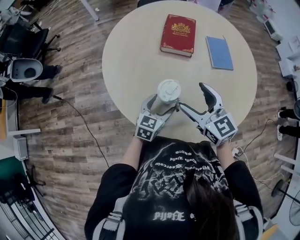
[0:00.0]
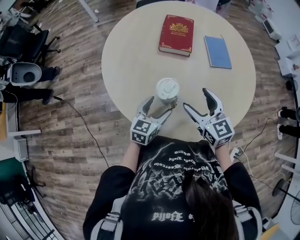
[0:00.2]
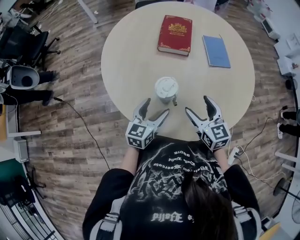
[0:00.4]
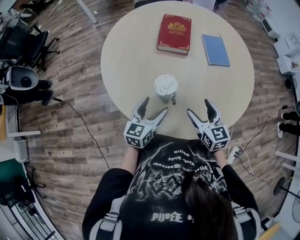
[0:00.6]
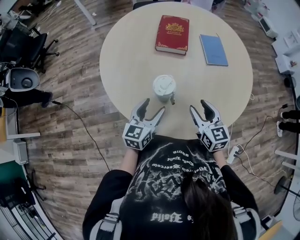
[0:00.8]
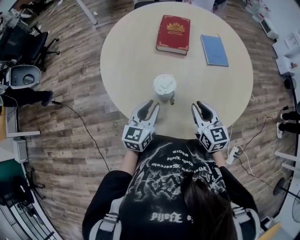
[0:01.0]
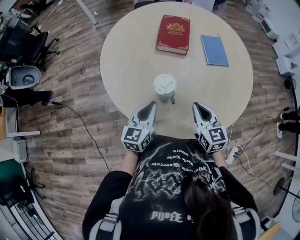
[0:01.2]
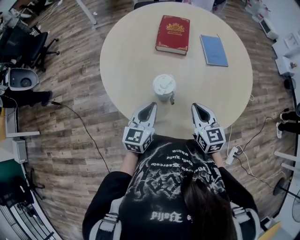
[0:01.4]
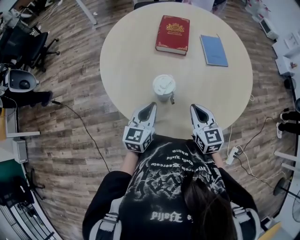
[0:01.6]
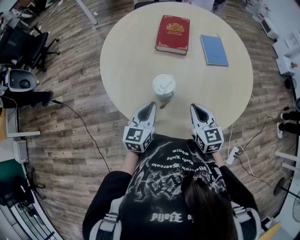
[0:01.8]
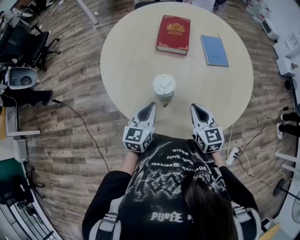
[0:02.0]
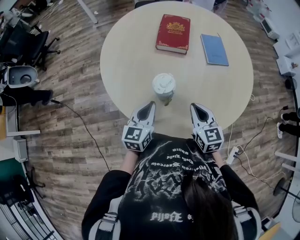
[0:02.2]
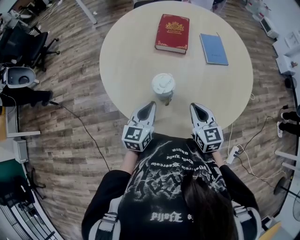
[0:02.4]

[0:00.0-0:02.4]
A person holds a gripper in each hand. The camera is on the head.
0:00.0 to 0:01.2: The left gripper goes about 5 cm upward, and closes. The right gripper goes roughly 10 cm downward, to the right and backward, and closes its fingers.
0:01.2 to 0:02.4: Both grippers stay about where they are.

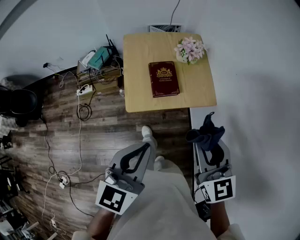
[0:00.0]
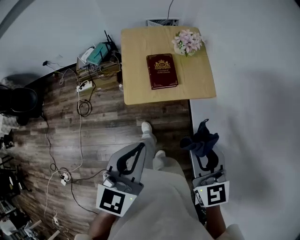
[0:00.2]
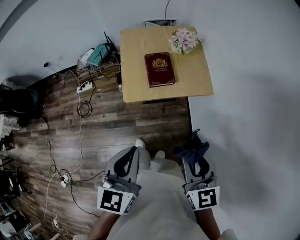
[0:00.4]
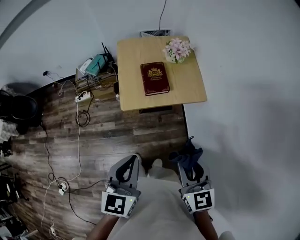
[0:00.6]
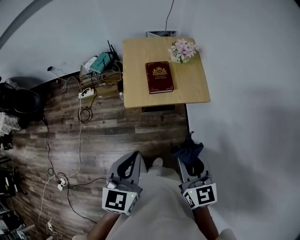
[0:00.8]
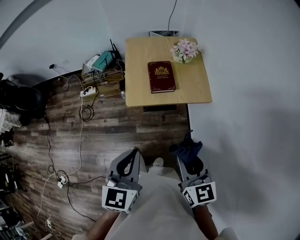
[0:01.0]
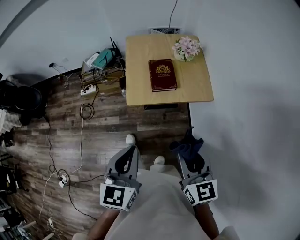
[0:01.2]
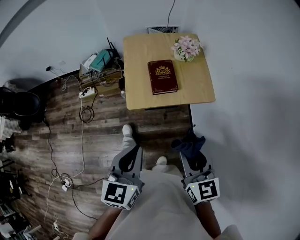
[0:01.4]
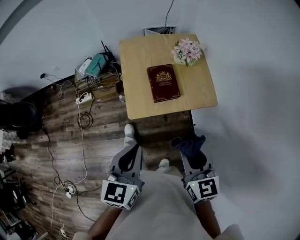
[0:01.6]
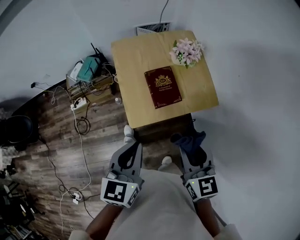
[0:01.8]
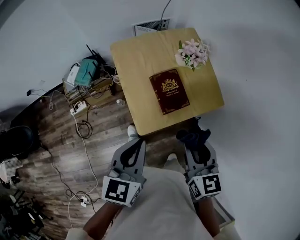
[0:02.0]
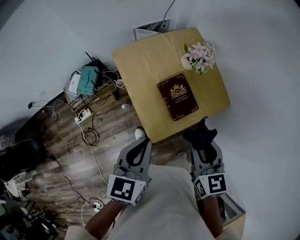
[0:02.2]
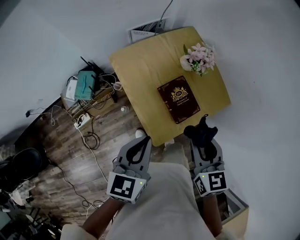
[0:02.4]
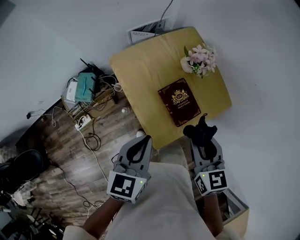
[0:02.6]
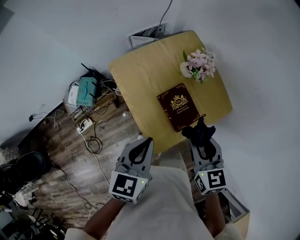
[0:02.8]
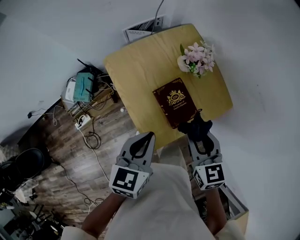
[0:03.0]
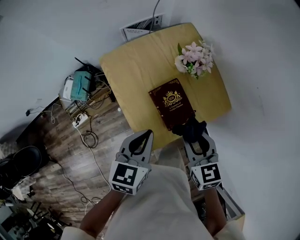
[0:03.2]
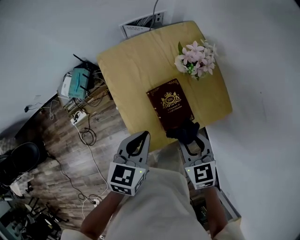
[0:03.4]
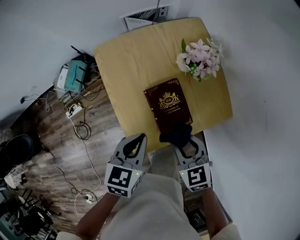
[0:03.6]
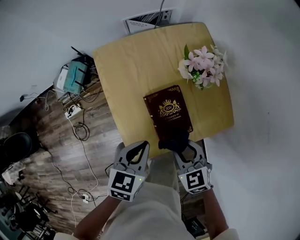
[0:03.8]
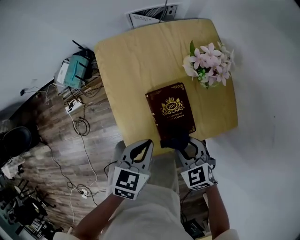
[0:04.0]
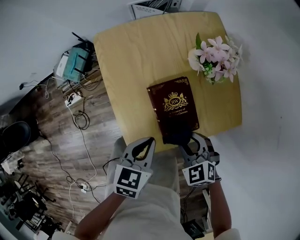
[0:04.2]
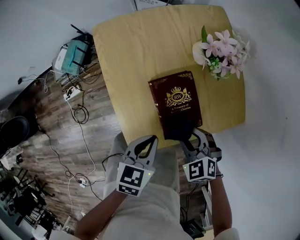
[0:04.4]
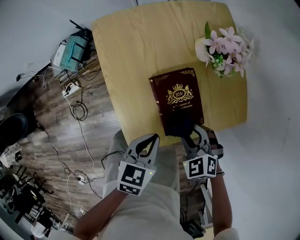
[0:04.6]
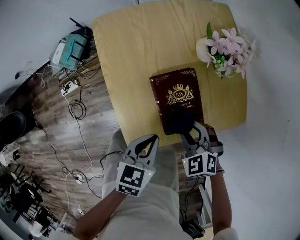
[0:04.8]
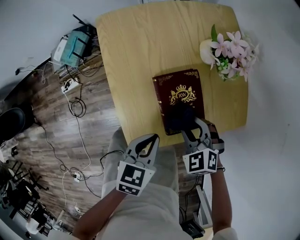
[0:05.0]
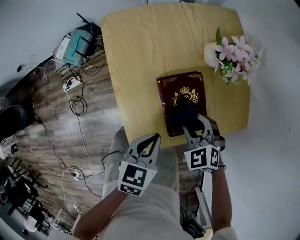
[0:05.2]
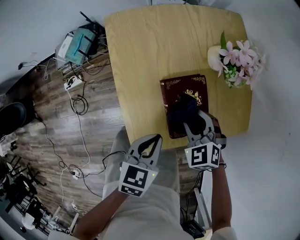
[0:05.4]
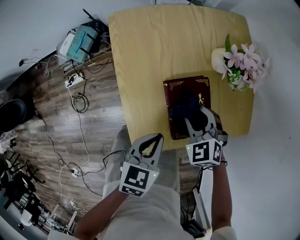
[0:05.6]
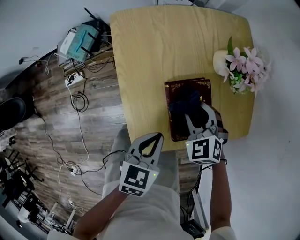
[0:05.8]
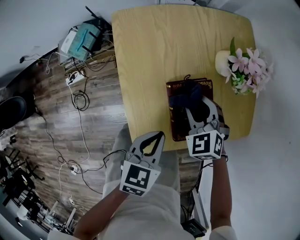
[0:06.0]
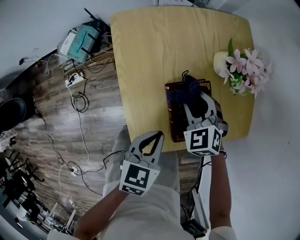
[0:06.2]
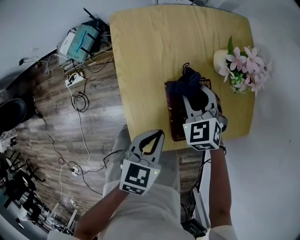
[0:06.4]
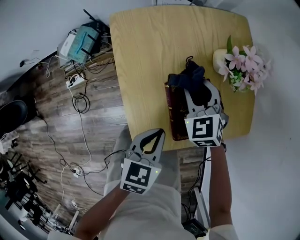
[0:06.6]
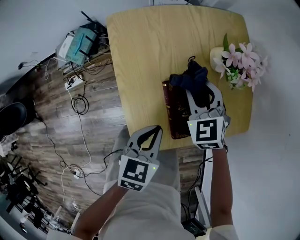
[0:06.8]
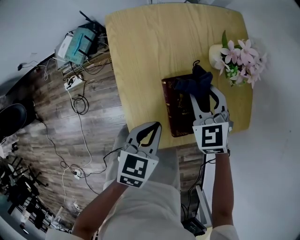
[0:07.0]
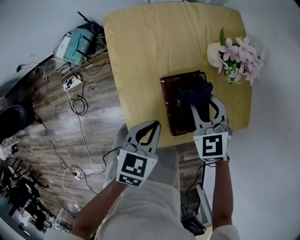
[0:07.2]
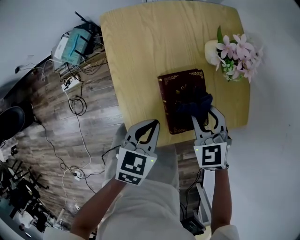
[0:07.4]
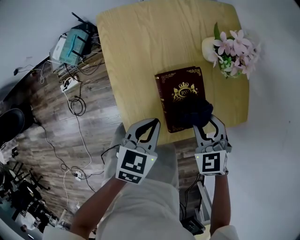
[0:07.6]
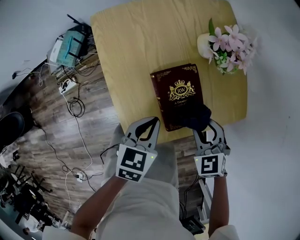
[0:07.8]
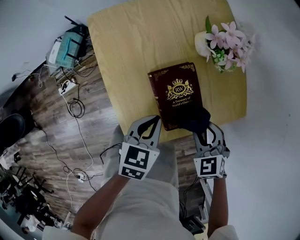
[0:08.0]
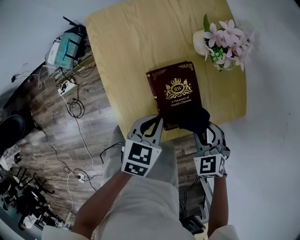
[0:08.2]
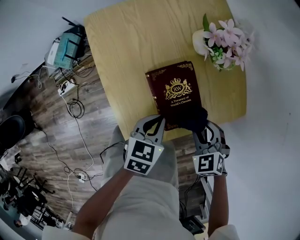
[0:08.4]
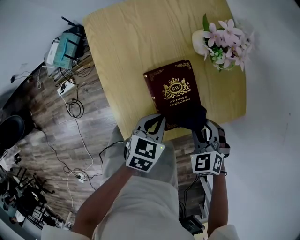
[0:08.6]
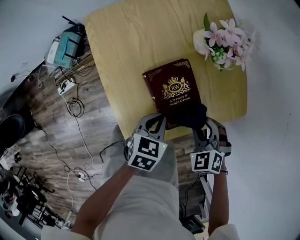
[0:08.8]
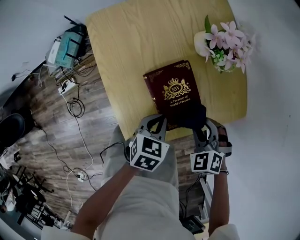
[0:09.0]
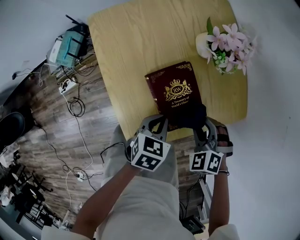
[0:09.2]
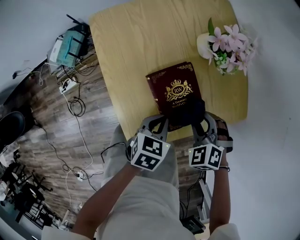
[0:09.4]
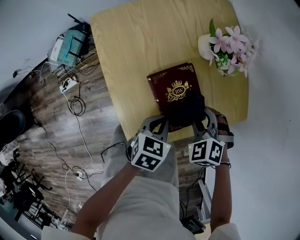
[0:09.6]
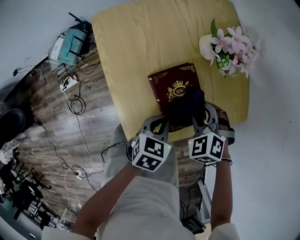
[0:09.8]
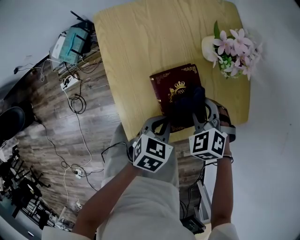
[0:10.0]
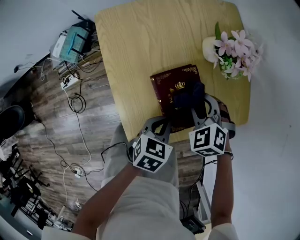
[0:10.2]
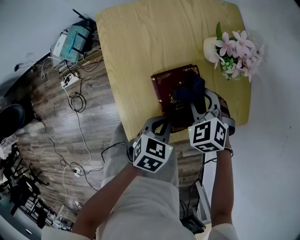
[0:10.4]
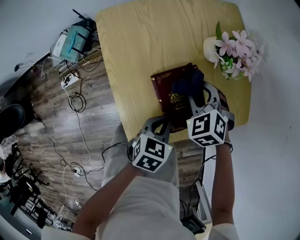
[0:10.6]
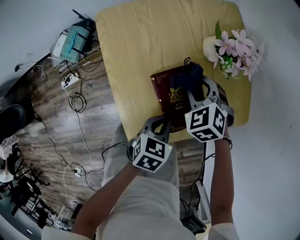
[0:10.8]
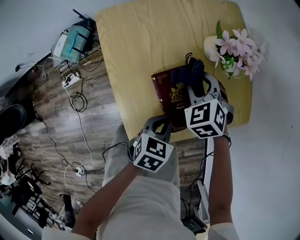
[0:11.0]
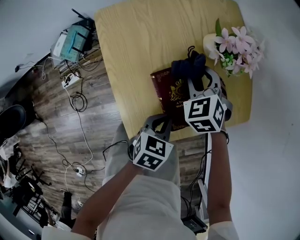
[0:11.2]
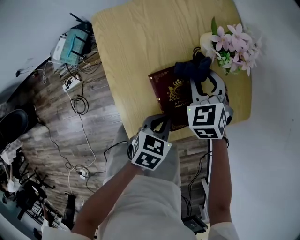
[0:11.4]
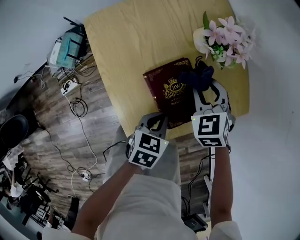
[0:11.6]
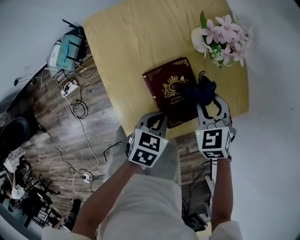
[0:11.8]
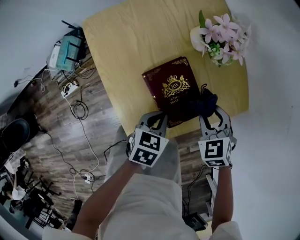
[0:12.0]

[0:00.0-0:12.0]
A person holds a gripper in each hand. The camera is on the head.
0:00.0 to 0:01.6: Both grippers travel together downward, about 5 cm. The left gripper moves roughly 10 cm backward and comes back. The right gripper travels backward and back again, roughly 15 cm each way.
0:01.6 to 0:03.0: Both grippers move forward and to the left, roughly 30 cm. The left gripper swivels approximately 30 degrees.
0:03.0 to 0:04.4: The two grippers go roughly 20 cm downward. The right gripper rolls counterclockwise, seen from behind, by some 40 degrees.
0:04.4 to 0:06.0: The right gripper is displaced forward by approximately 15 cm.
0:06.0 to 0:07.6: The right gripper is displaced backward and to the right by about 10 cm.
0:07.6 to 0:09.0: The left gripper is displaced downward and to the right by roughly 10 cm, while the right gripper moves some 5 cm.
0:09.0 to 0:10.4: The right gripper shifts roughly 10 cm forward and to the left.
0:10.4 to 0:12.0: The right gripper goes about 10 cm to the right and backward, and rotates some 20 degrees.

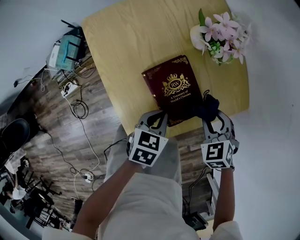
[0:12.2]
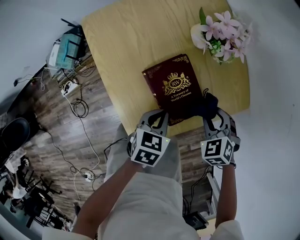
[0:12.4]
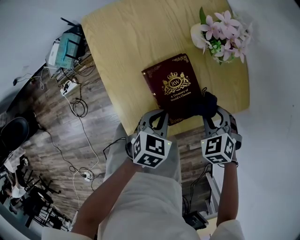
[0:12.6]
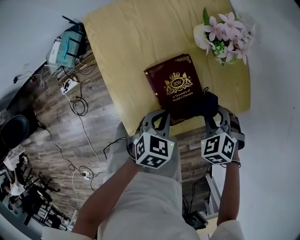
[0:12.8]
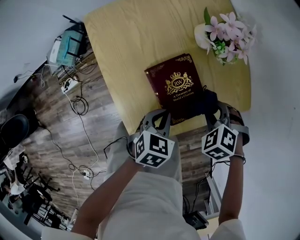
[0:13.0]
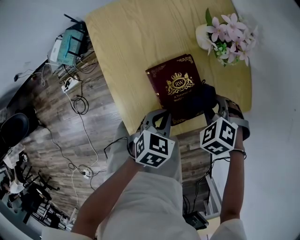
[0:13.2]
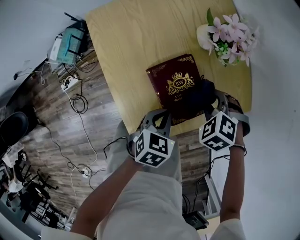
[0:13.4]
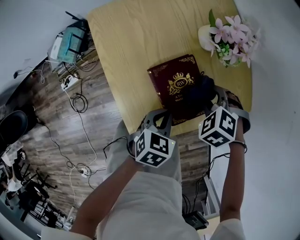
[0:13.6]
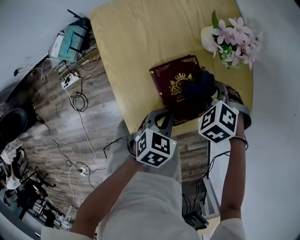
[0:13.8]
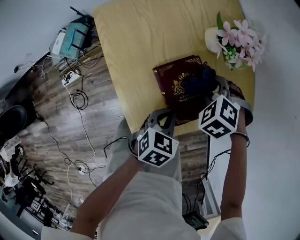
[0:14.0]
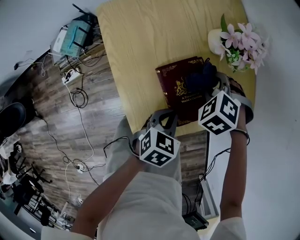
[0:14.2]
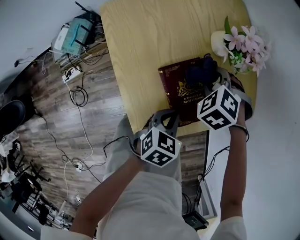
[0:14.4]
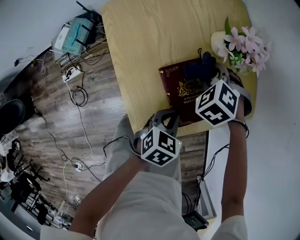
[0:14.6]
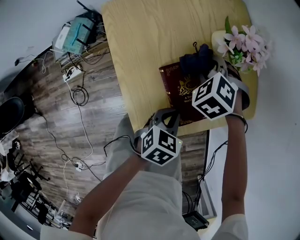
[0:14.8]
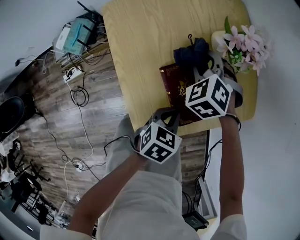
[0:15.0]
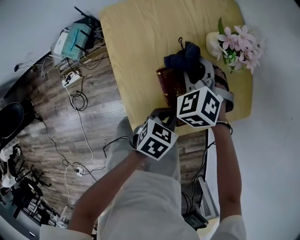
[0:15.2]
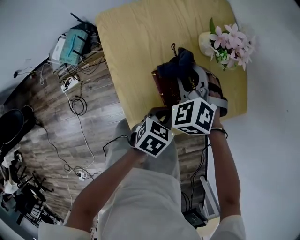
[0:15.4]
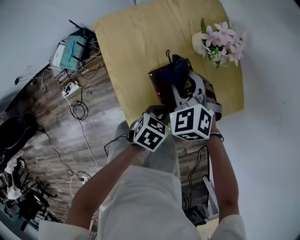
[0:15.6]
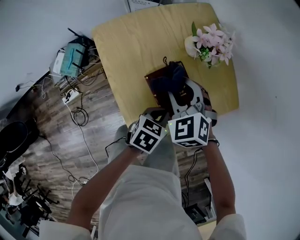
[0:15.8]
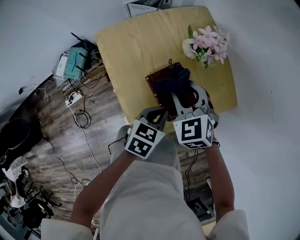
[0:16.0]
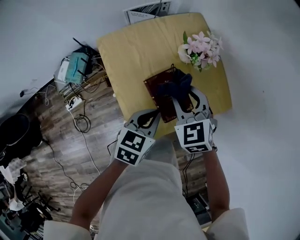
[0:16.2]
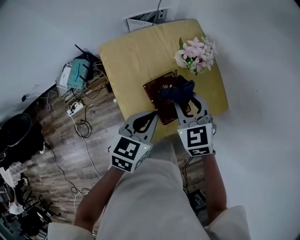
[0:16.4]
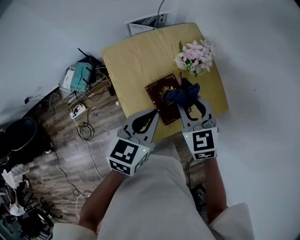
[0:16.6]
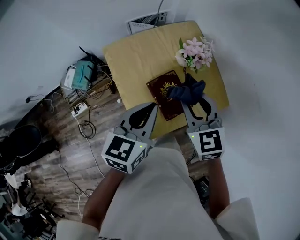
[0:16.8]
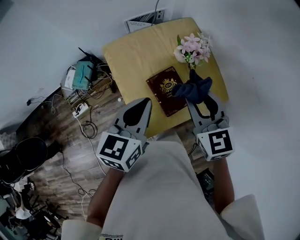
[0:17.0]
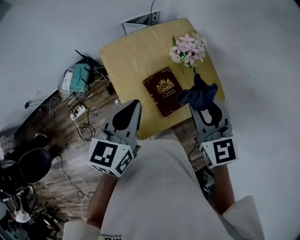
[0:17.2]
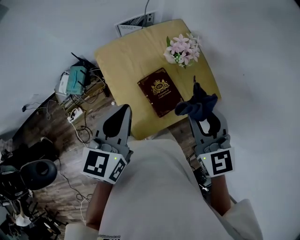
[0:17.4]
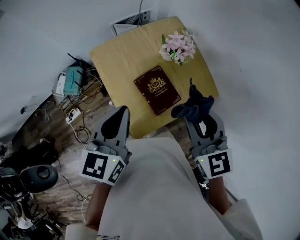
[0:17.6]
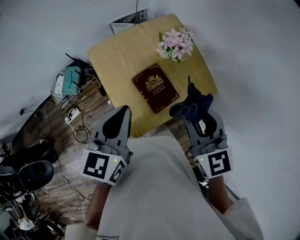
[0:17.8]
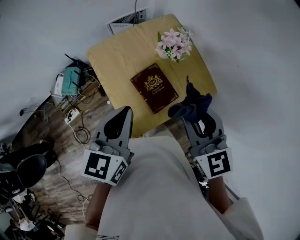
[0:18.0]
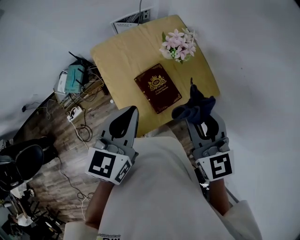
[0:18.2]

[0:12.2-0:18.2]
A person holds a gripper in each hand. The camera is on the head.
0:12.2 to 0:13.8: The right gripper moves approximately 10 cm, and turns by roughly 30 degrees.
0:13.8 to 0:15.2: The right gripper shifts by approximately 15 cm, and turns by approximately 30 degrees.
0:15.2 to 0:16.6: The right gripper moves upward, backward and to the right, roughly 20 cm, and swivels some 40 degrees; the left gripper is displaced upward by about 25 cm, and rotates some 30 degrees.
0:16.6 to 0:18.2: The left gripper is displaced upward by roughly 5 cm, while the right gripper shifts some 15 cm upward, backward and to the right.

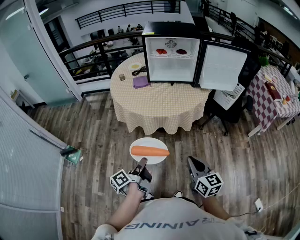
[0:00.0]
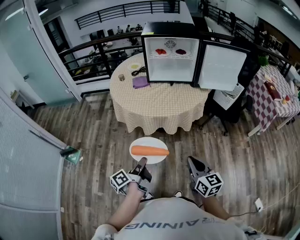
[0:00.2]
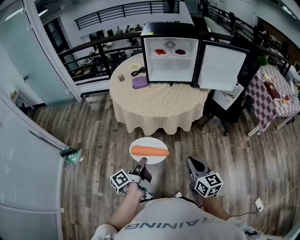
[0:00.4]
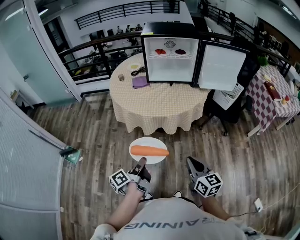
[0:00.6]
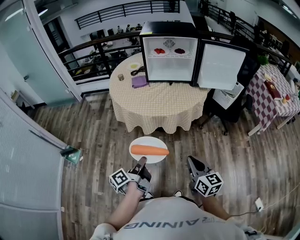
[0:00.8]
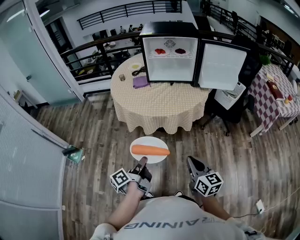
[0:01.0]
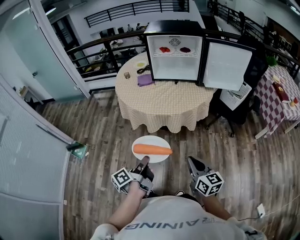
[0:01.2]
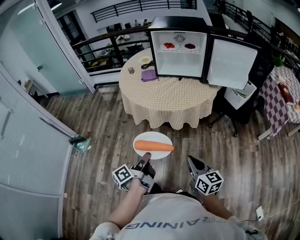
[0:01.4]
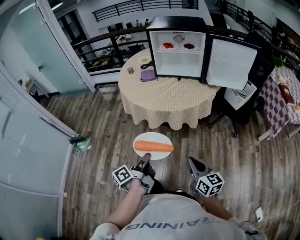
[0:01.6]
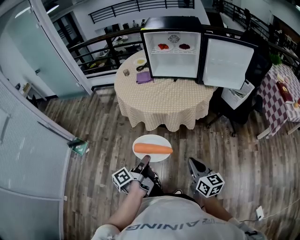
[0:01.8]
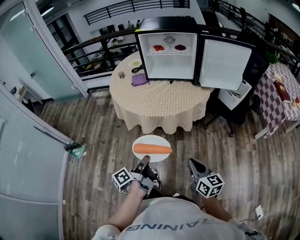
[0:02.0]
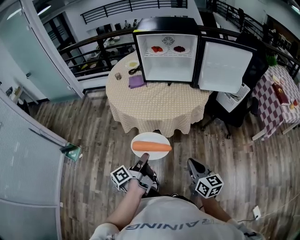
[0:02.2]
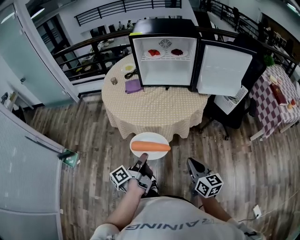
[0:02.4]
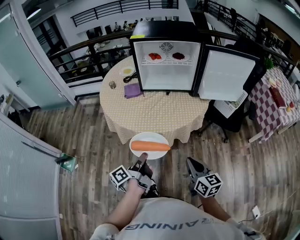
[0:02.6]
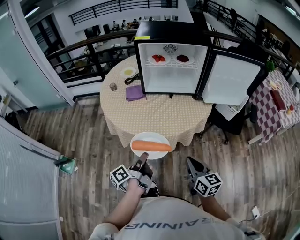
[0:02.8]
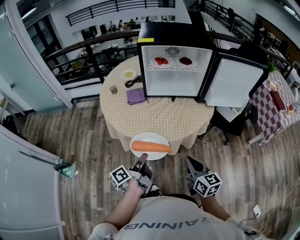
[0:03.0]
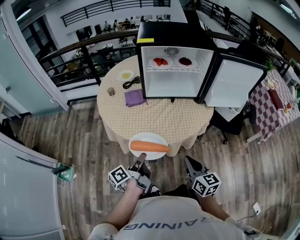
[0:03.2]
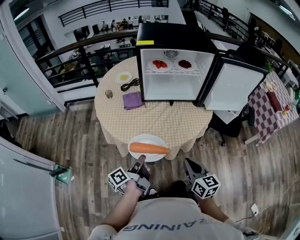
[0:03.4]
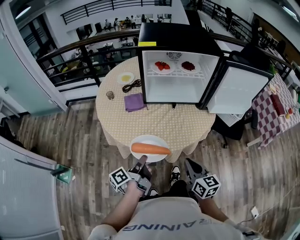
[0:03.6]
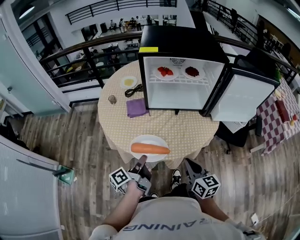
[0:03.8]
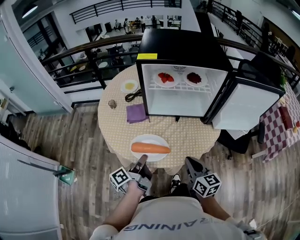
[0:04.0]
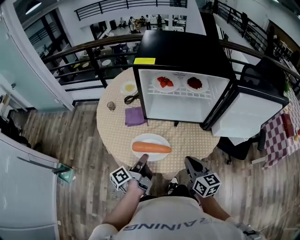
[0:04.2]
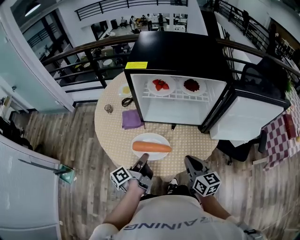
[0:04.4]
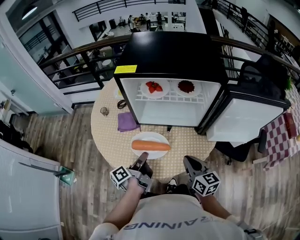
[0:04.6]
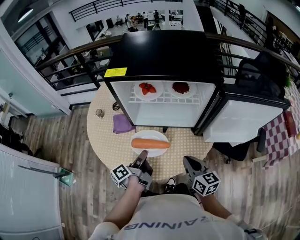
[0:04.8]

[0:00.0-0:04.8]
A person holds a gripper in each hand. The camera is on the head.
0:00.0 to 0:01.6: The right gripper ends up roughly 5 cm from where it was.
0:01.6 to 0:03.2: The right gripper shifts by roughly 25 cm.
0:03.2 to 0:04.8: The right gripper moves roughly 25 cm.
